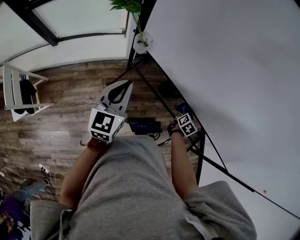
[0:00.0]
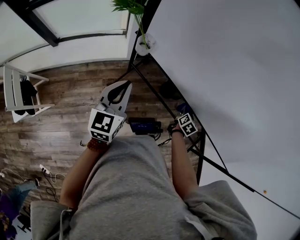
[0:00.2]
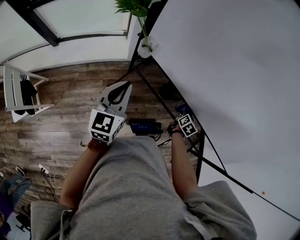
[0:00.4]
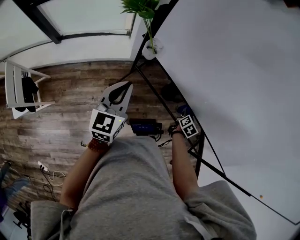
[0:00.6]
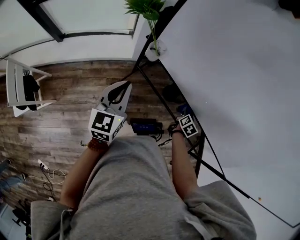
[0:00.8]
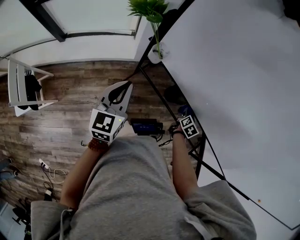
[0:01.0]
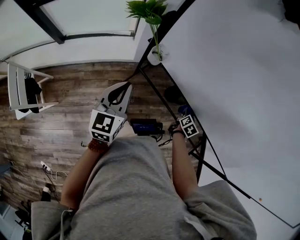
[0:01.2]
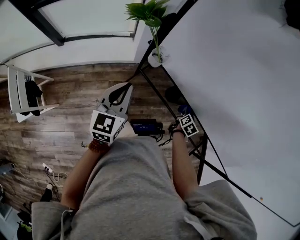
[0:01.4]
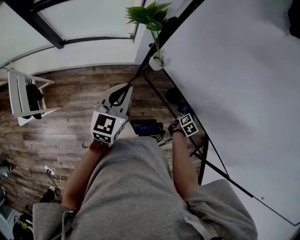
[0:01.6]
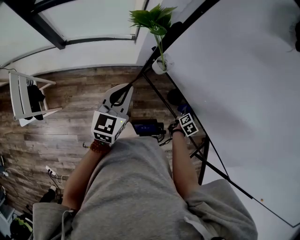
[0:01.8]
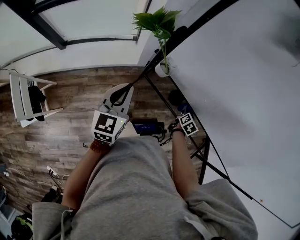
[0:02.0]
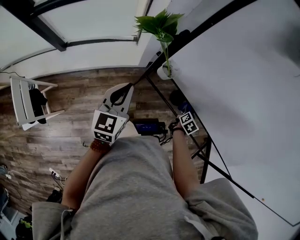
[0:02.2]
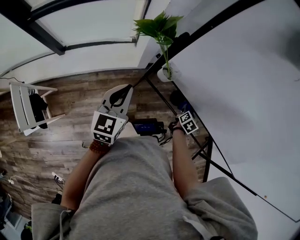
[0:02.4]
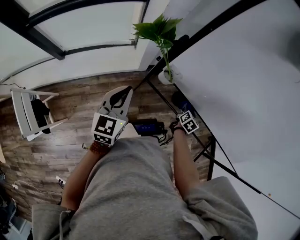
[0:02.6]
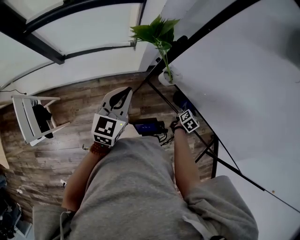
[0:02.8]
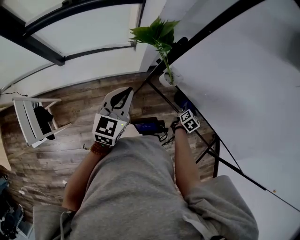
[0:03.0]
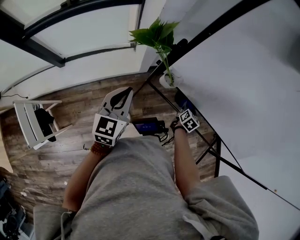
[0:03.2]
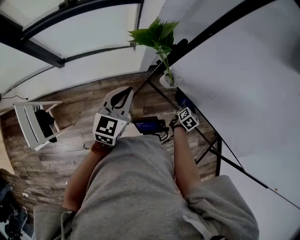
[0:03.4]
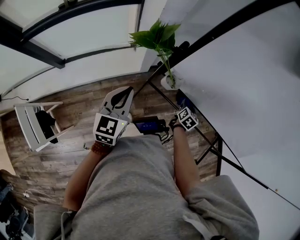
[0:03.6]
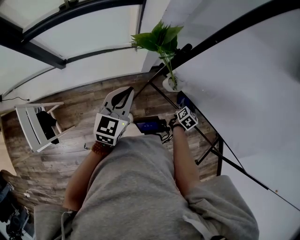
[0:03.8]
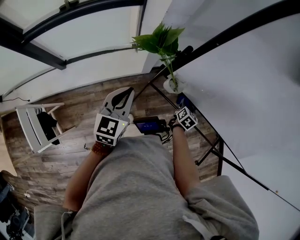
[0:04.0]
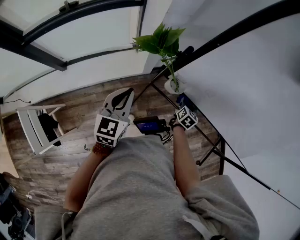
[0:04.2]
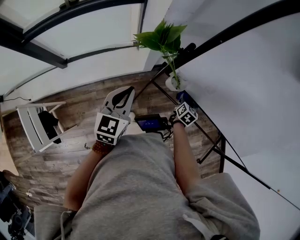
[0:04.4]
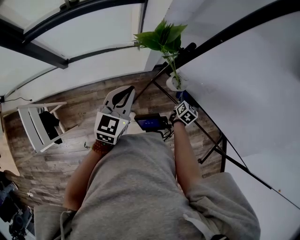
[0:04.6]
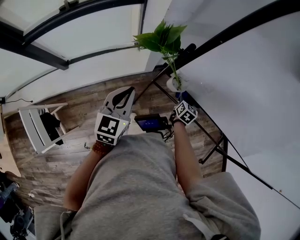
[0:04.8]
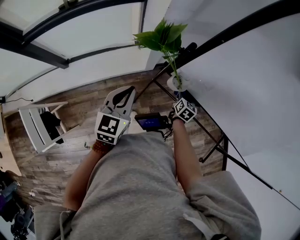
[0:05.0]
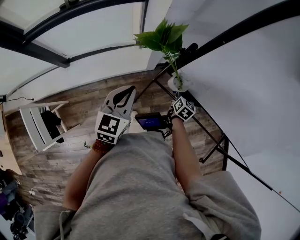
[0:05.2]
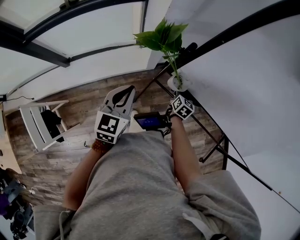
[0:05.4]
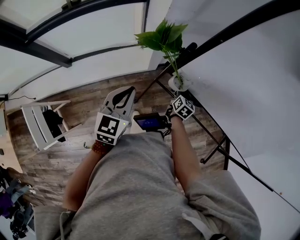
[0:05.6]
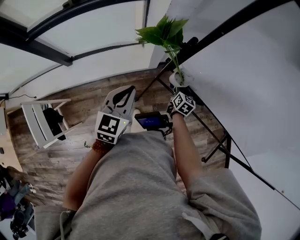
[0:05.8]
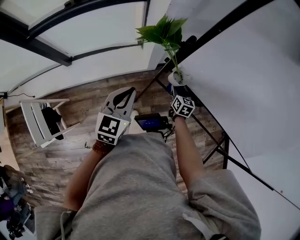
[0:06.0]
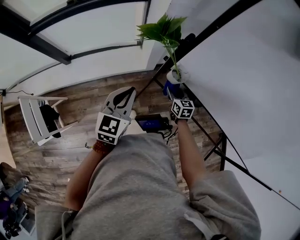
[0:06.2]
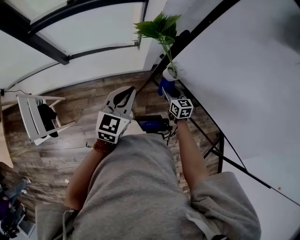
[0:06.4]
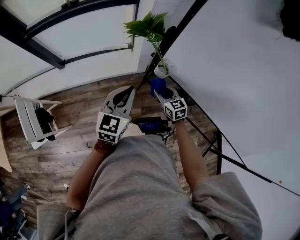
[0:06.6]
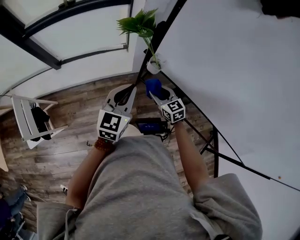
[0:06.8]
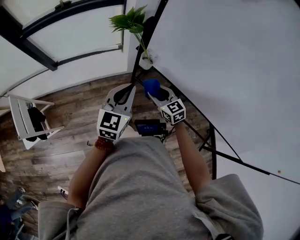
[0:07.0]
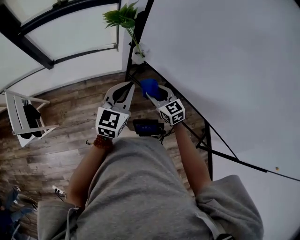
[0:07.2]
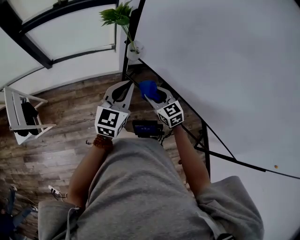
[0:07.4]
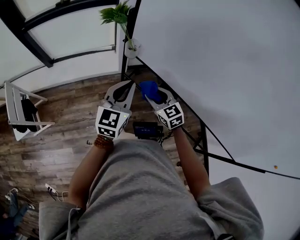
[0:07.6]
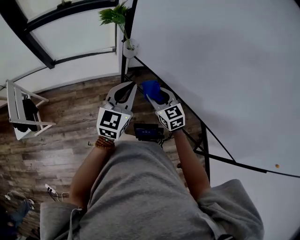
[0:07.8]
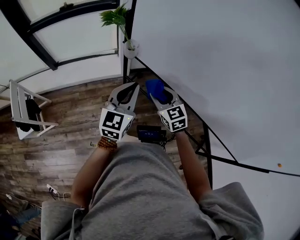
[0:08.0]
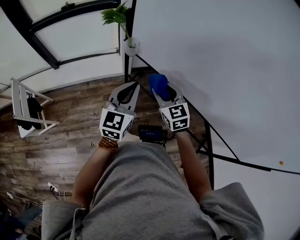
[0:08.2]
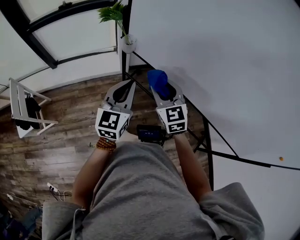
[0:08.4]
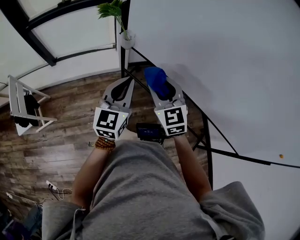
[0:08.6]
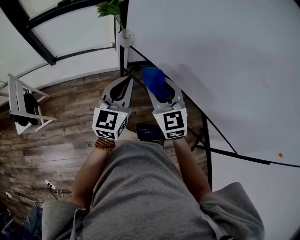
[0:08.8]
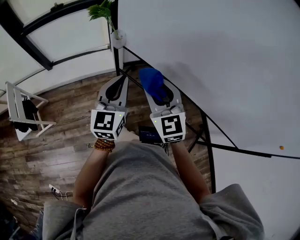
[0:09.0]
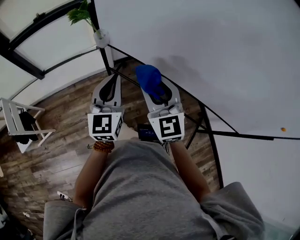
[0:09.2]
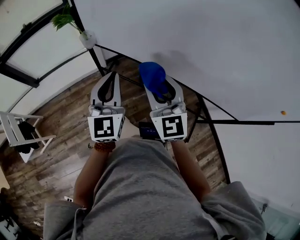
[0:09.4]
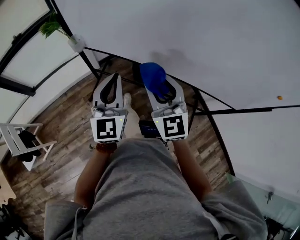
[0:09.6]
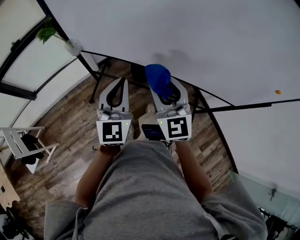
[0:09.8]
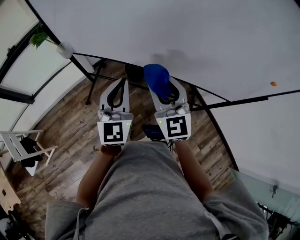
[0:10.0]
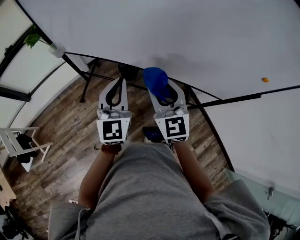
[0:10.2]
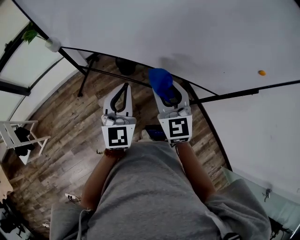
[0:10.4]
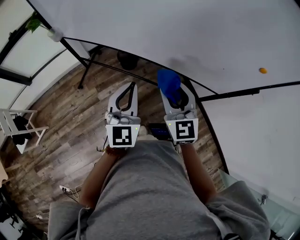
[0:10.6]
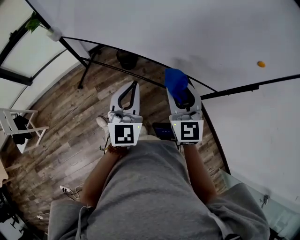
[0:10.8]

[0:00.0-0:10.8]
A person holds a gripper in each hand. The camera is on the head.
0:00.0 to 0:01.6: The grippers both shift to the left by about 10 cm.
0:01.6 to 0:03.0: The two grippers go some 10 cm to the left.
0:03.0 to 0:04.6: The right gripper moves to the left, approximately 10 cm.
0:04.6 to 0:06.2: The right gripper travels to the left by approximately 10 cm, and swivels roughly 40 degrees.
0:06.2 to 0:07.8: The right gripper travels backward and upward by approximately 30 cm, and turns by roughly 30 degrees. Meanwhile the left gripper goes about 25 cm to the right and backward.
0:07.8 to 0:09.2: The left gripper heads backward, covering approximately 5 cm; the right gripper goes some 20 cm upward and backward, and swivels some 30 degrees.
0:09.2 to 0:10.8: The grippers both shift to the right and backward by roughly 40 cm. The right gripper changes its angle by roughly 20 degrees.

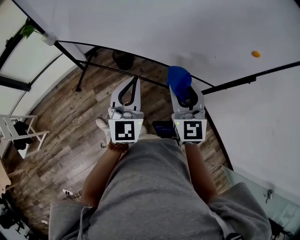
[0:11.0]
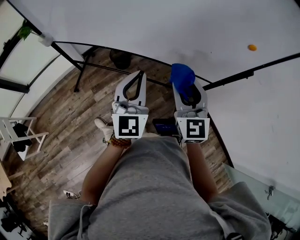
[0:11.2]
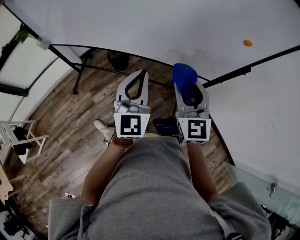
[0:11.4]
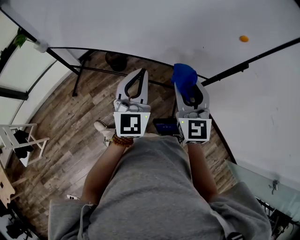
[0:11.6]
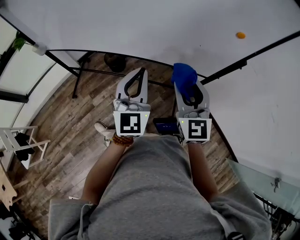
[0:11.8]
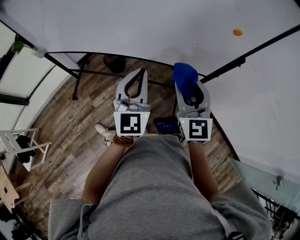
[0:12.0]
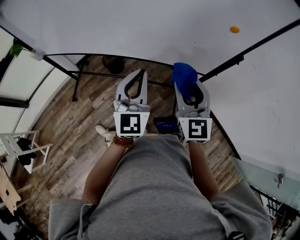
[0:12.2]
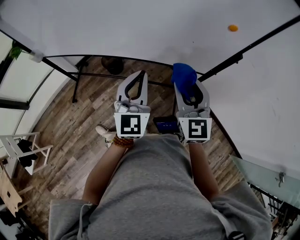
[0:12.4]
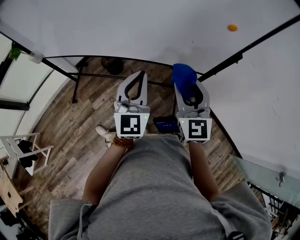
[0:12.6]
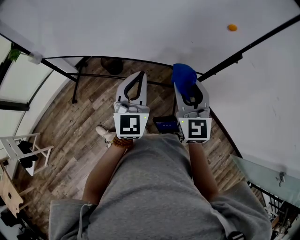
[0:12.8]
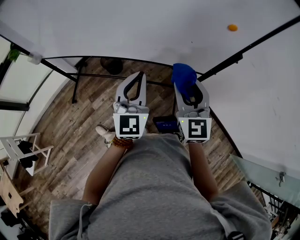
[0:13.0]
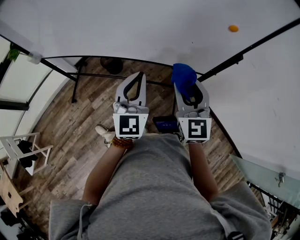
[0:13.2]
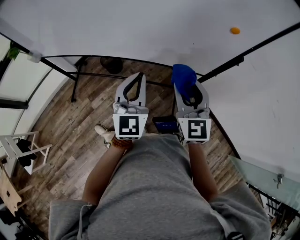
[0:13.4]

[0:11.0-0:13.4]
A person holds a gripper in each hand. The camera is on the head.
0:11.0 to 0:12.2: Both grippers travel together to the right, some 10 cm.
0:12.2 to 0:13.4: The grippers move only a little.

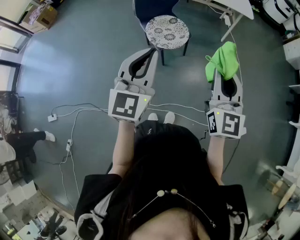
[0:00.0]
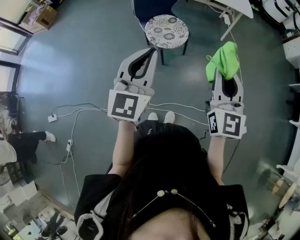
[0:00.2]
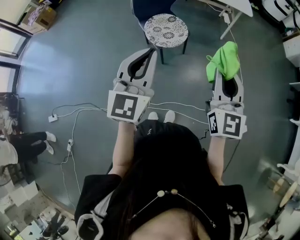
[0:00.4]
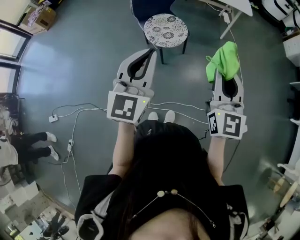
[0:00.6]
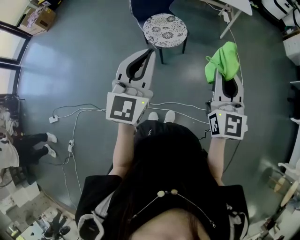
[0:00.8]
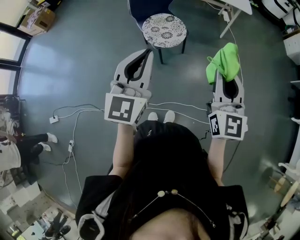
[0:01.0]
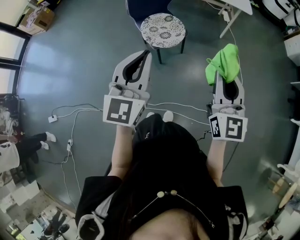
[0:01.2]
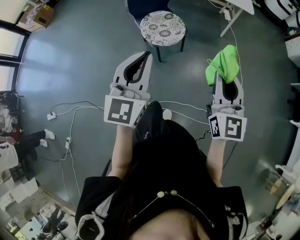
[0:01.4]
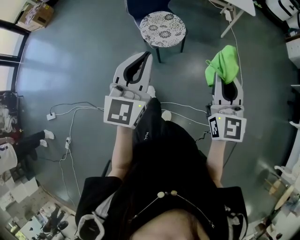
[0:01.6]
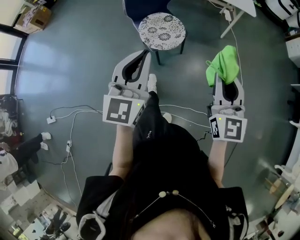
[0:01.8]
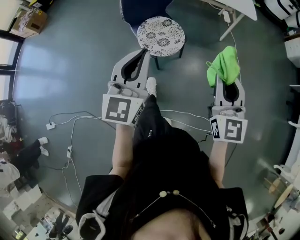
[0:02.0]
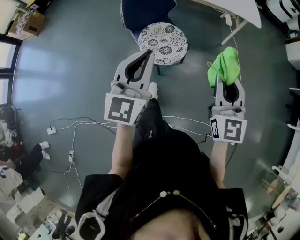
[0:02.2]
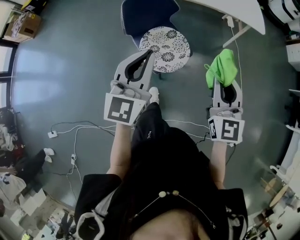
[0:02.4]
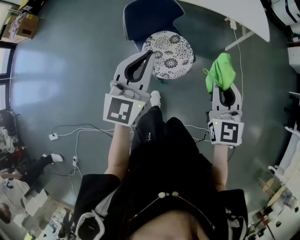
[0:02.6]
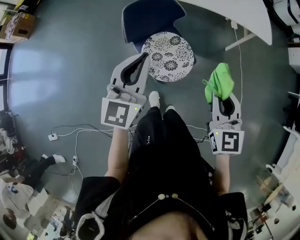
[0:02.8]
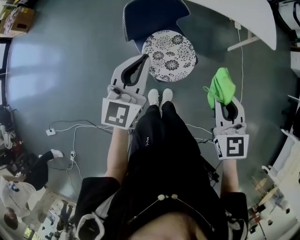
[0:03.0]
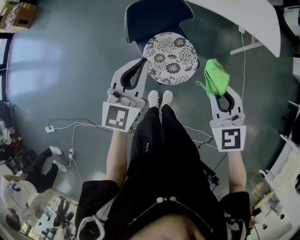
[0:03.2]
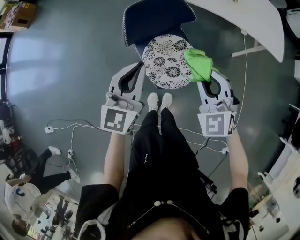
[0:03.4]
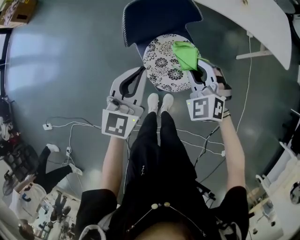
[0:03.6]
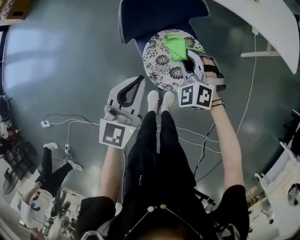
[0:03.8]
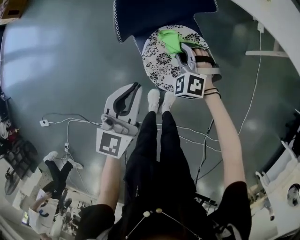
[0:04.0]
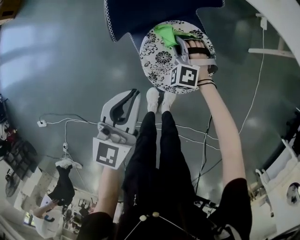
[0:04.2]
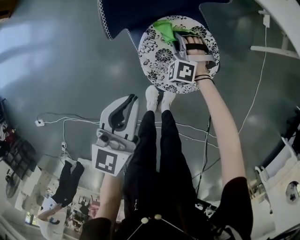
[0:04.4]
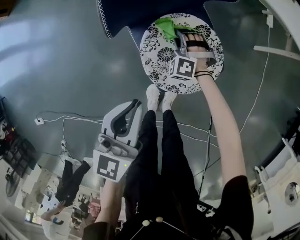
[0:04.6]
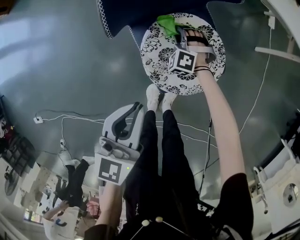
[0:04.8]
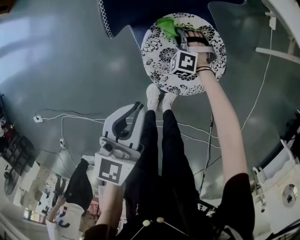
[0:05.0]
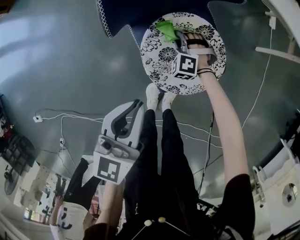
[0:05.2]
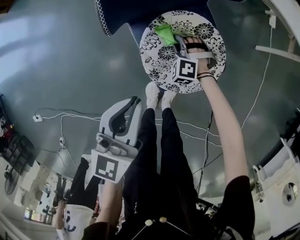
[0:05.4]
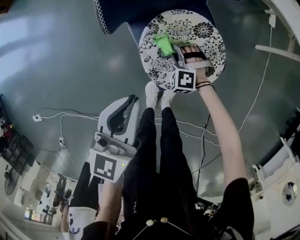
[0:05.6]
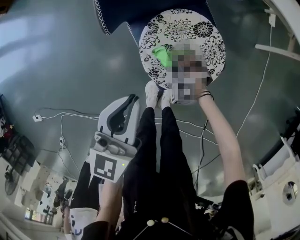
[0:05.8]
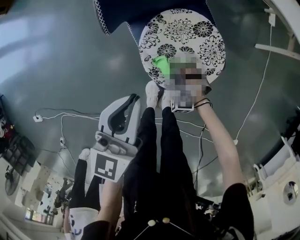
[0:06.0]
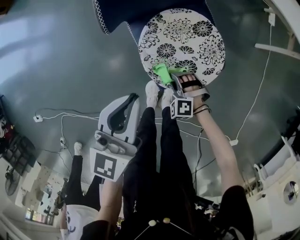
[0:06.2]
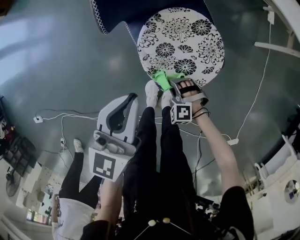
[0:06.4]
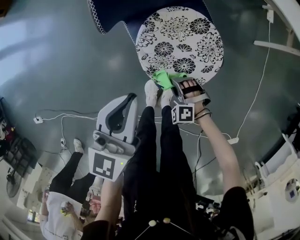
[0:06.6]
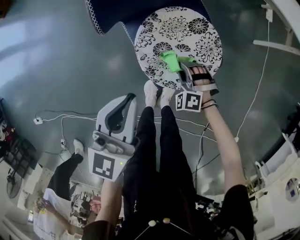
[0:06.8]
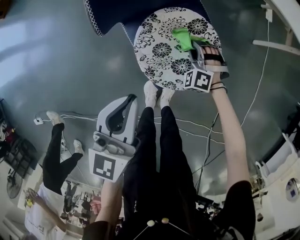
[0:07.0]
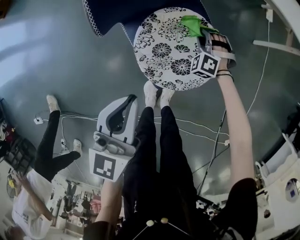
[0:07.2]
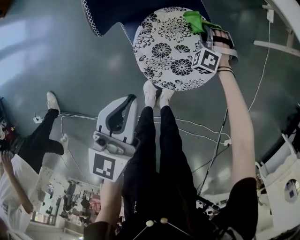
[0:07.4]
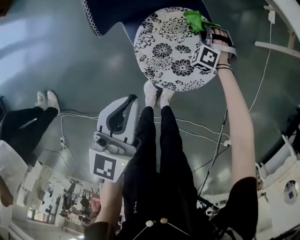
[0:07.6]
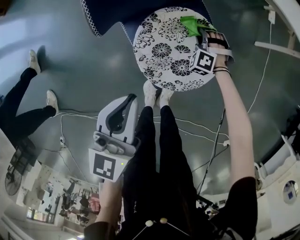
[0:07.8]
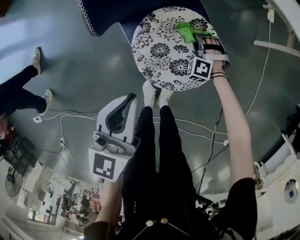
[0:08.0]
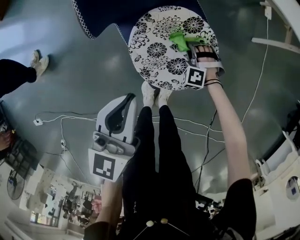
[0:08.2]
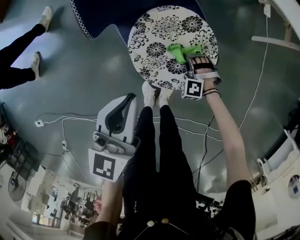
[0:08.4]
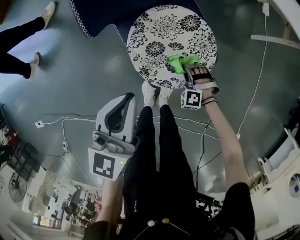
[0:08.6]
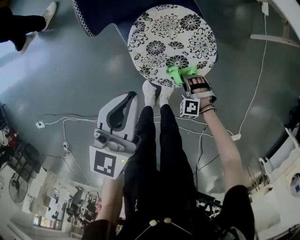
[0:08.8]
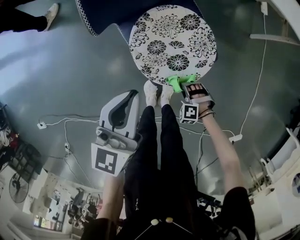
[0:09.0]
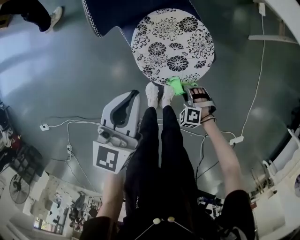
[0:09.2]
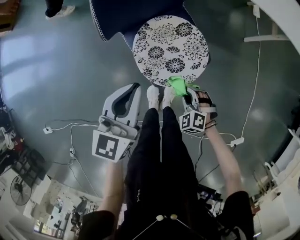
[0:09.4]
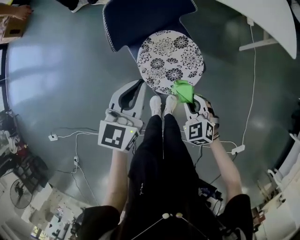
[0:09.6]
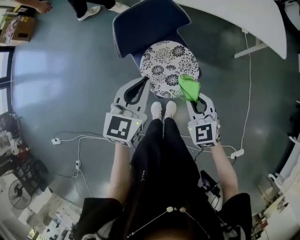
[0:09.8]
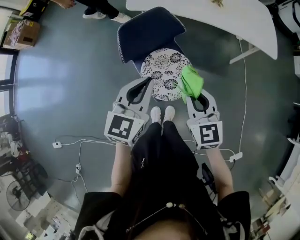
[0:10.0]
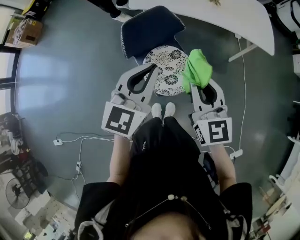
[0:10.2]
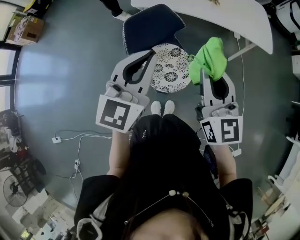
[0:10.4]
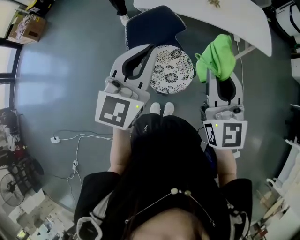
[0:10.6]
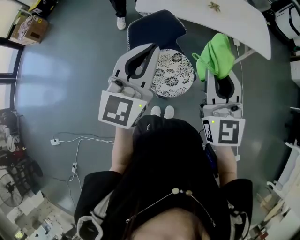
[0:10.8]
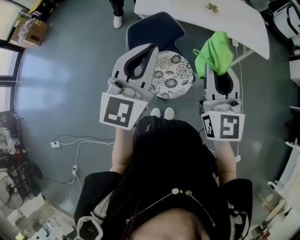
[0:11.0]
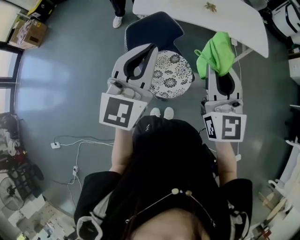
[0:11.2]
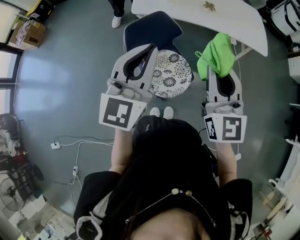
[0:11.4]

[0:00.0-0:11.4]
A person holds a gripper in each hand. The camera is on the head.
0:00.0 to 0:01.4: The right gripper shifts roughly 5 cm to the right. Meanwhile the left gripper shifts by about 5 cm.
0:01.4 to 0:02.8: The two grippers travel together, forward and to the left, roughly 40 cm. The right gripper rotates about 20 degrees.
0:02.8 to 0:04.2: The left gripper travels downward by about 25 cm, while the right gripper is displaced downward and forward by approximately 50 cm, and rotates around the line of its fingers by some 60 degrees, counterclockwise from behind.
0:04.2 to 0:05.6: The left gripper shifts by some 5 cm; the right gripper heads downward and backward, covering approximately 15 cm.
0:05.6 to 0:07.2: The right gripper goes approximately 15 cm to the right, and goes backward and returns, about 15 cm each way.
0:07.2 to 0:08.6: The right gripper heads backward, covering about 20 cm.
0:08.6 to 0:10.0: The left gripper is displaced upward by approximately 25 cm. The right gripper heads upward, covering some 50 cm, and rotates around the line of its fingers by roughly 70 degrees, clockwise from behind.
0:10.0 to 0:11.4: The two grippers go approximately 20 cm upward. The right gripper rotates some 30 degrees. Meanwhile the left gripper rotates about 20 degrees.
